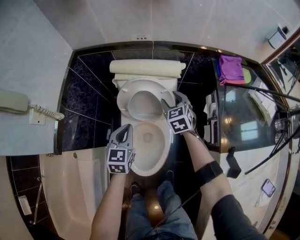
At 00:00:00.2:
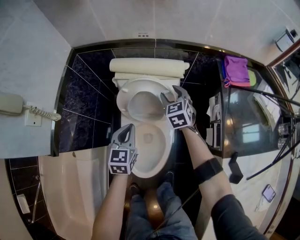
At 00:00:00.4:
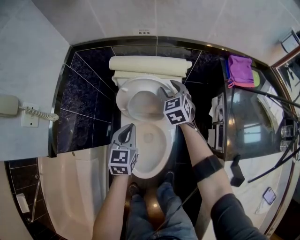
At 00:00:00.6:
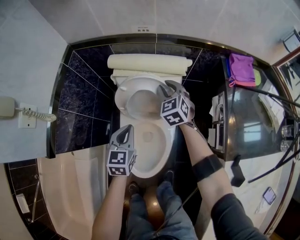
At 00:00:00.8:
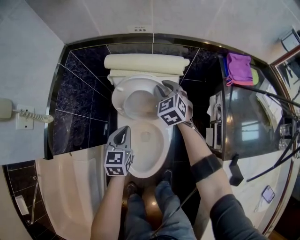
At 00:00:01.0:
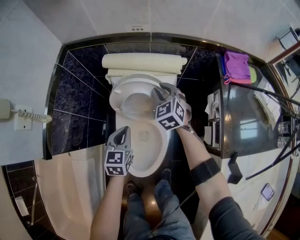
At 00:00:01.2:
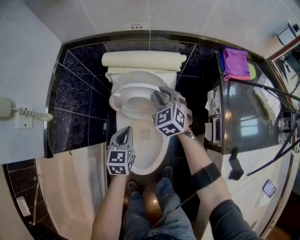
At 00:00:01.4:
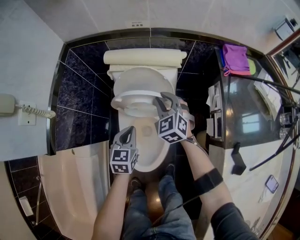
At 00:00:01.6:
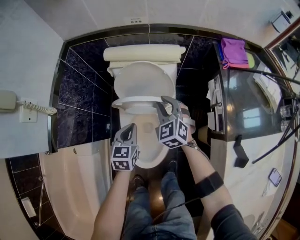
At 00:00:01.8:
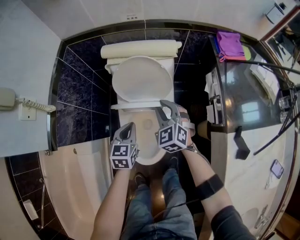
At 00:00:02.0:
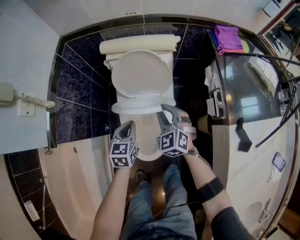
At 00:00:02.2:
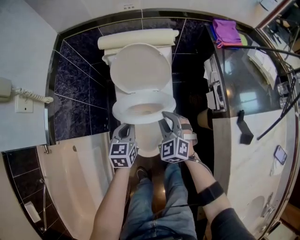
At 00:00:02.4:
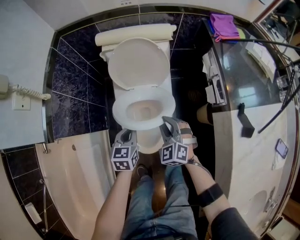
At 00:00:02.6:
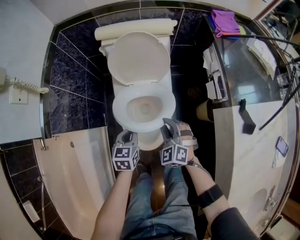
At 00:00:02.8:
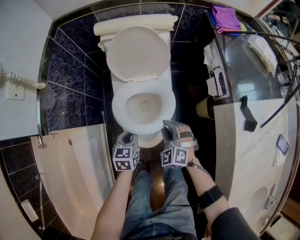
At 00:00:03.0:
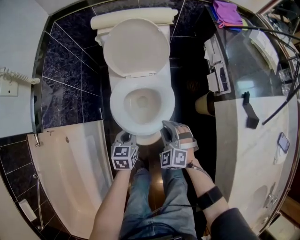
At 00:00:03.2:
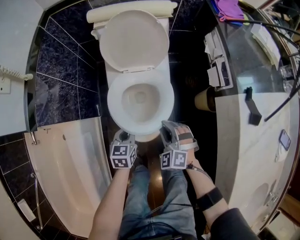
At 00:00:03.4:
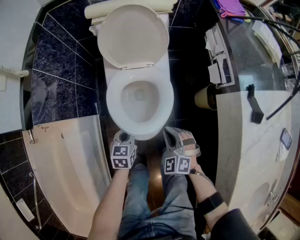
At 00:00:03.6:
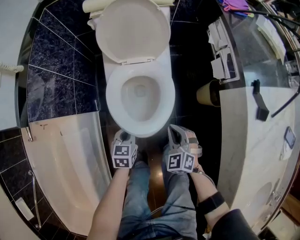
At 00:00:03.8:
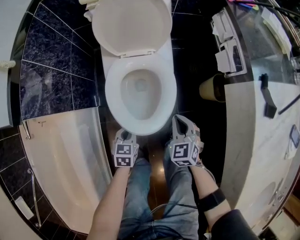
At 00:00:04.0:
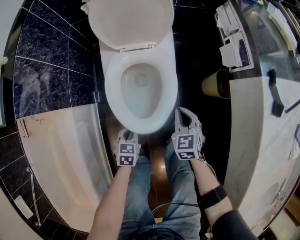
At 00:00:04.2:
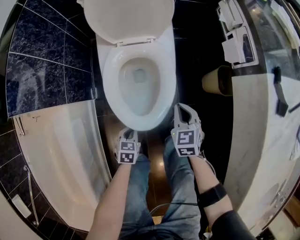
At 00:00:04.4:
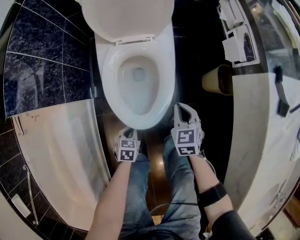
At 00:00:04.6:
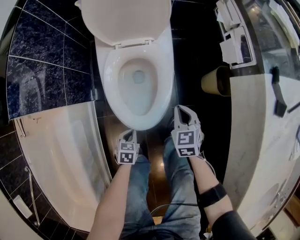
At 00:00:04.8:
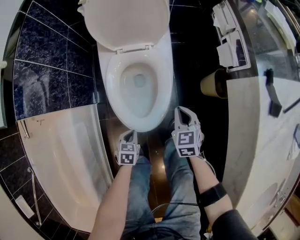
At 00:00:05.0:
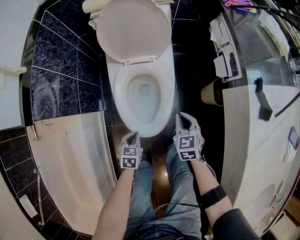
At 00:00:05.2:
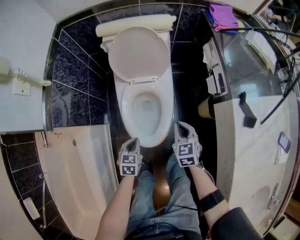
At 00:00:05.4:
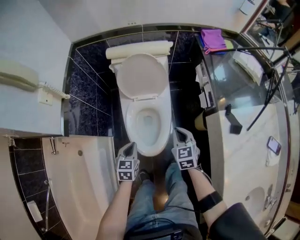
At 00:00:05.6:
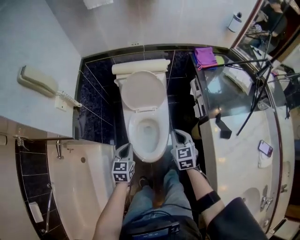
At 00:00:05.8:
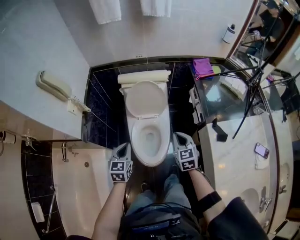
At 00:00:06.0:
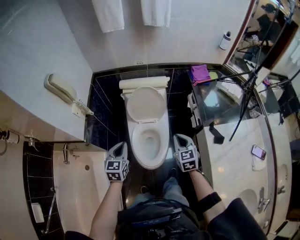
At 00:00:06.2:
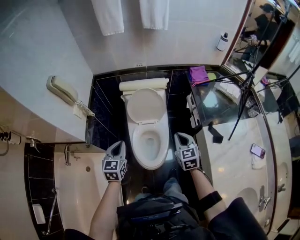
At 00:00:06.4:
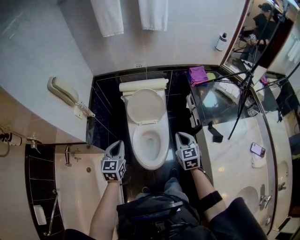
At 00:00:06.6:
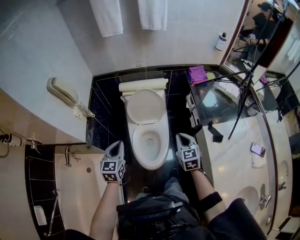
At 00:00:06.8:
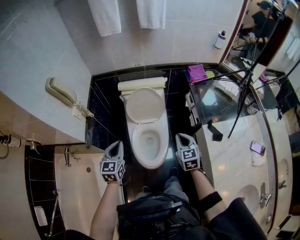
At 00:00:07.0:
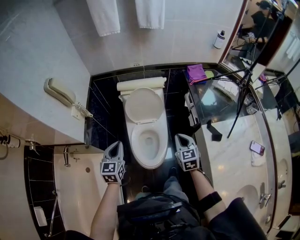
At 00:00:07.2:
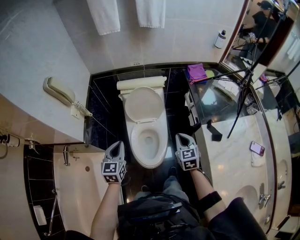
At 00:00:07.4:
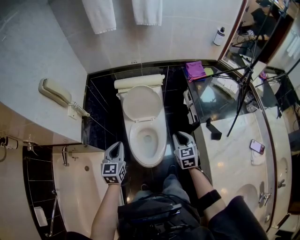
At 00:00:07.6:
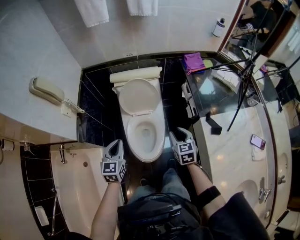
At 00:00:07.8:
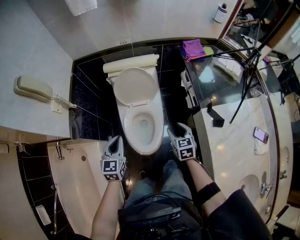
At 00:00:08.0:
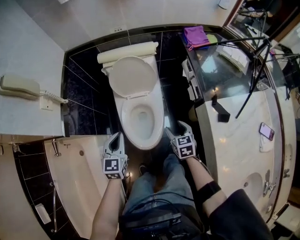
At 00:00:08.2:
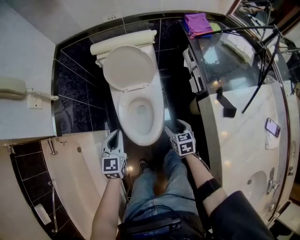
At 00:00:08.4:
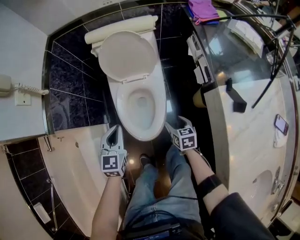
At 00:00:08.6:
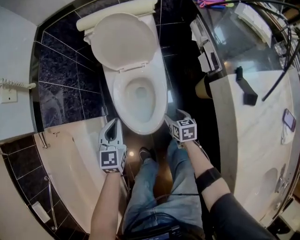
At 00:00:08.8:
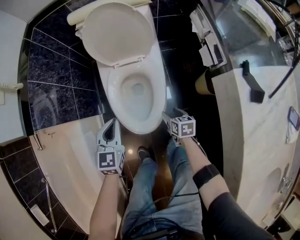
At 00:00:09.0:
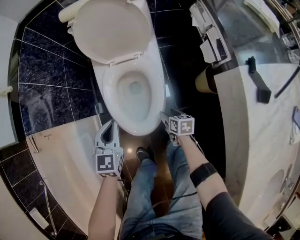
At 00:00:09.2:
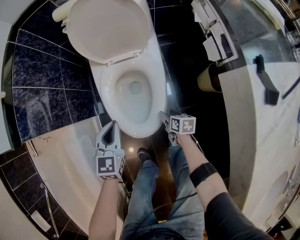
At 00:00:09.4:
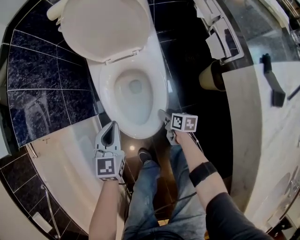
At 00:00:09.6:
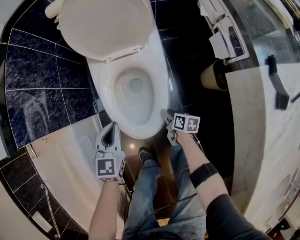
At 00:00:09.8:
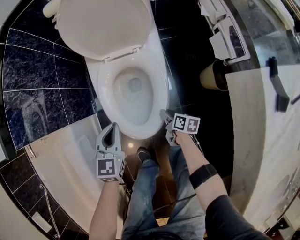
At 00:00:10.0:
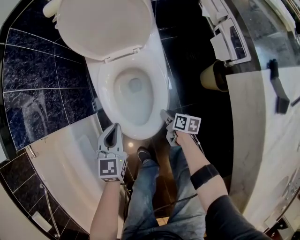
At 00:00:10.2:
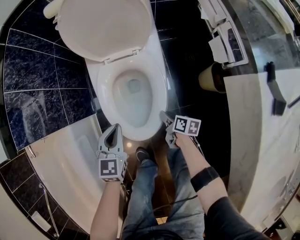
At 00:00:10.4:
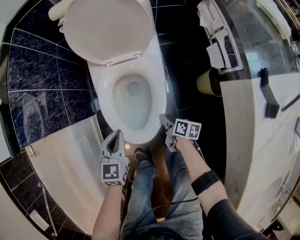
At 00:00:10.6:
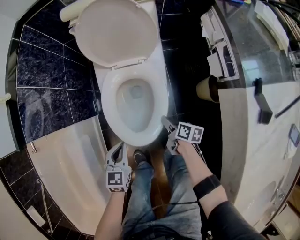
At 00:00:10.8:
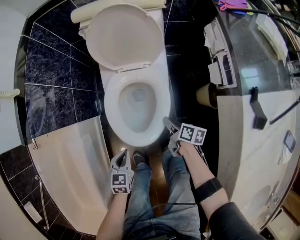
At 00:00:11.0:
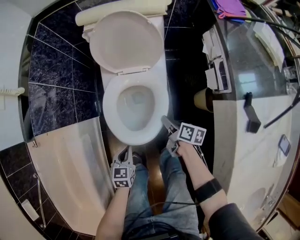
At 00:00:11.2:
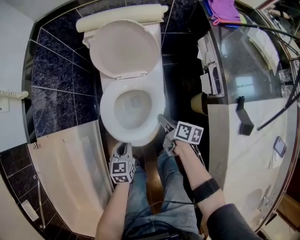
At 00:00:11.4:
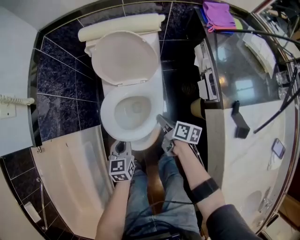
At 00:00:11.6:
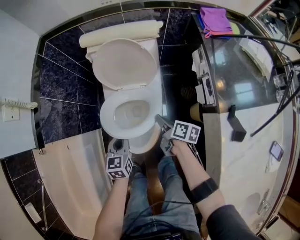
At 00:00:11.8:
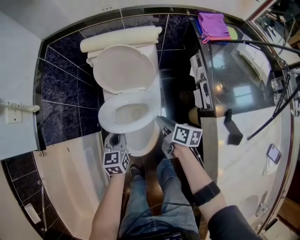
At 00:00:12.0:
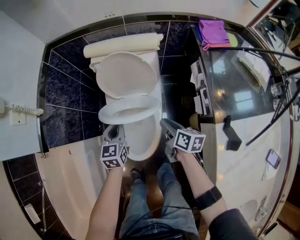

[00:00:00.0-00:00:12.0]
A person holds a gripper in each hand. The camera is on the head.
00:00:00.0 to 00:00:01.6: The left gripper heads downward, covering roughly 10 cm. The right gripper shifts approximately 10 cm backward, and closes its fingers.
00:00:01.6 to 00:00:03.0: Both grippers travel together backward and downward, about 25 cm. The right gripper rotates approximately 20 degrees.
00:00:03.0 to 00:00:04.4: The right gripper goes about 15 cm downward and to the right, twists approximately 40 degrees clockwise, seen from behind, and closes; the left gripper shifts roughly 25 cm downward and backward, and turns by approximately 20 degrees.
00:00:04.4 to 00:00:06.0: The grippers both shift upward by some 50 cm. The left gripper angles its fingers upward, by some 30 degrees.
00:00:06.0 to 00:00:07.6: The right gripper ends up some 5 cm from where it was, and opens up.
00:00:07.6 to 00:00:09.0: The right gripper is displaced downward by some 50 cm, turns by roughly 40 degrees, and opens up. The left gripper goes roughly 35 cm downward.
00:00:09.0 to 00:00:10.4: The right gripper rotates about 20 degrees, and closes up, while the left gripper shifts roughly 5 cm downward.
00:00:10.4 to 00:00:12.0: The right gripper moves upward and forward, about 35 cm. The left gripper shifts some 20 cm forward and upward.

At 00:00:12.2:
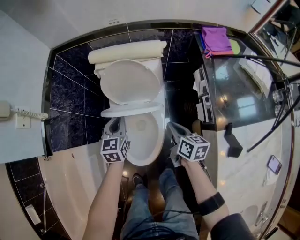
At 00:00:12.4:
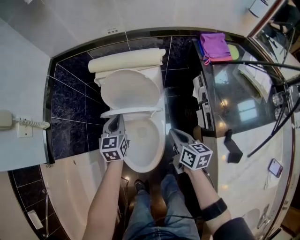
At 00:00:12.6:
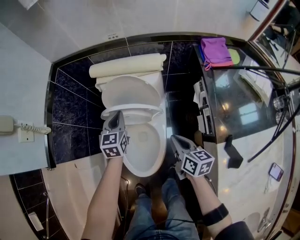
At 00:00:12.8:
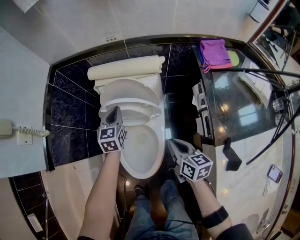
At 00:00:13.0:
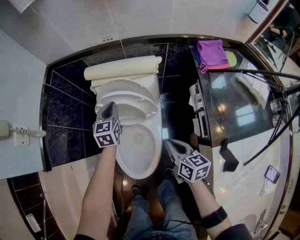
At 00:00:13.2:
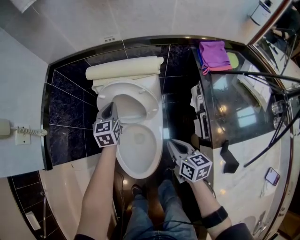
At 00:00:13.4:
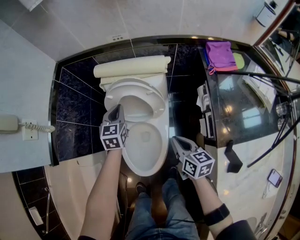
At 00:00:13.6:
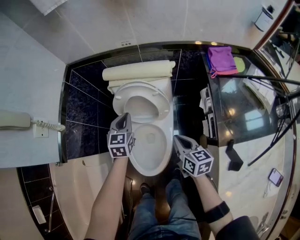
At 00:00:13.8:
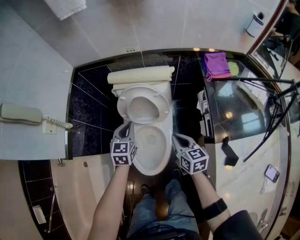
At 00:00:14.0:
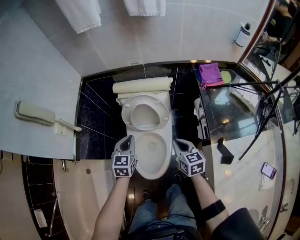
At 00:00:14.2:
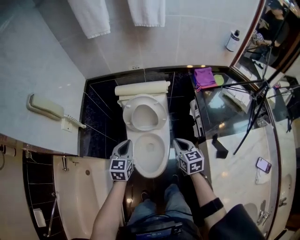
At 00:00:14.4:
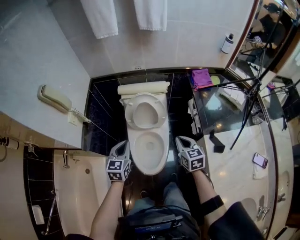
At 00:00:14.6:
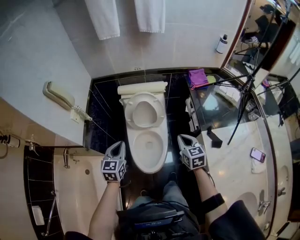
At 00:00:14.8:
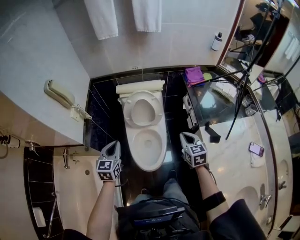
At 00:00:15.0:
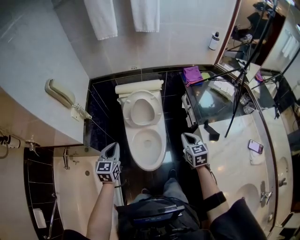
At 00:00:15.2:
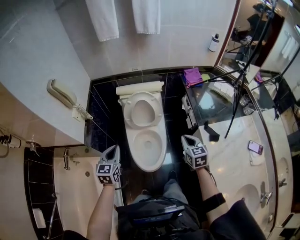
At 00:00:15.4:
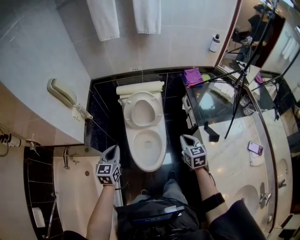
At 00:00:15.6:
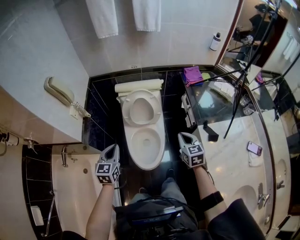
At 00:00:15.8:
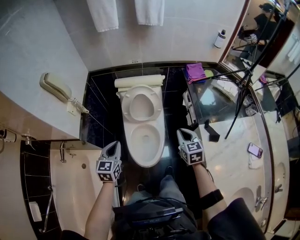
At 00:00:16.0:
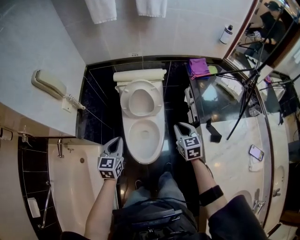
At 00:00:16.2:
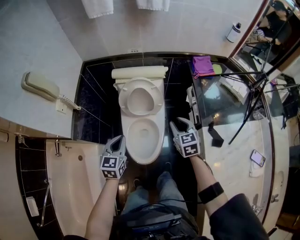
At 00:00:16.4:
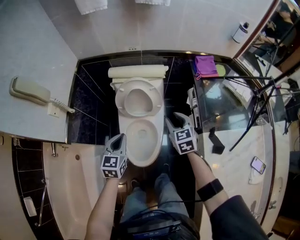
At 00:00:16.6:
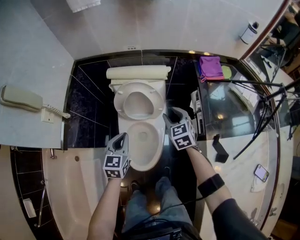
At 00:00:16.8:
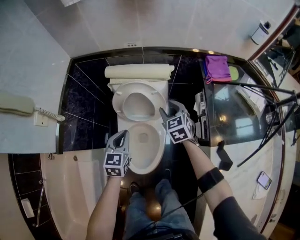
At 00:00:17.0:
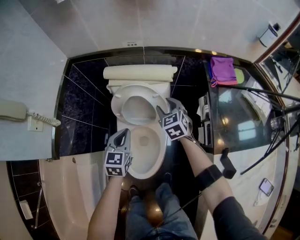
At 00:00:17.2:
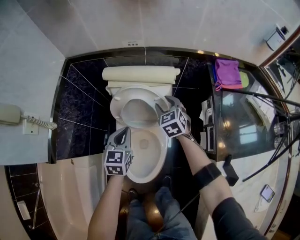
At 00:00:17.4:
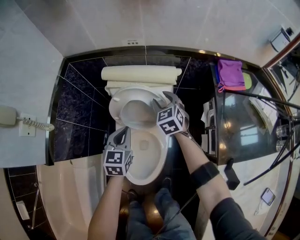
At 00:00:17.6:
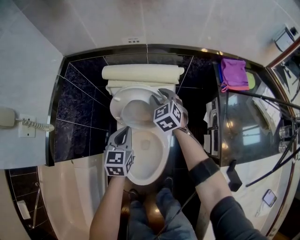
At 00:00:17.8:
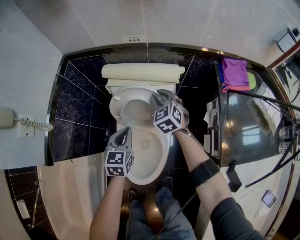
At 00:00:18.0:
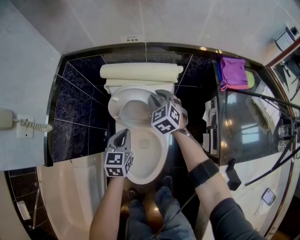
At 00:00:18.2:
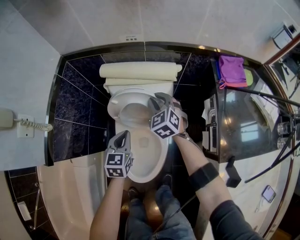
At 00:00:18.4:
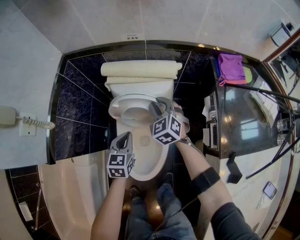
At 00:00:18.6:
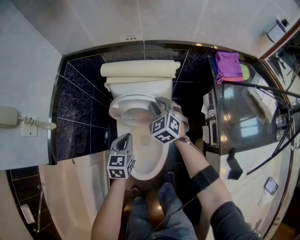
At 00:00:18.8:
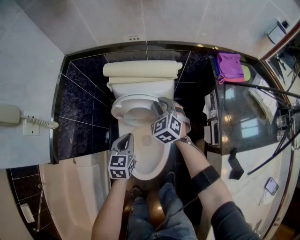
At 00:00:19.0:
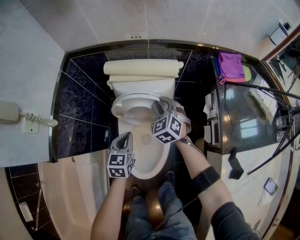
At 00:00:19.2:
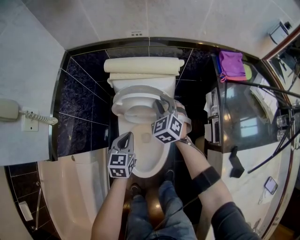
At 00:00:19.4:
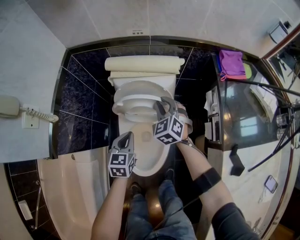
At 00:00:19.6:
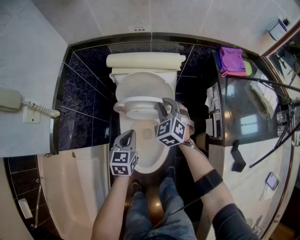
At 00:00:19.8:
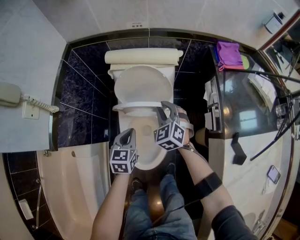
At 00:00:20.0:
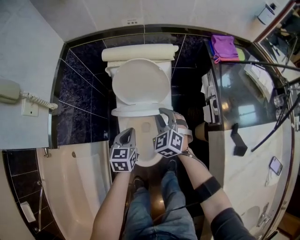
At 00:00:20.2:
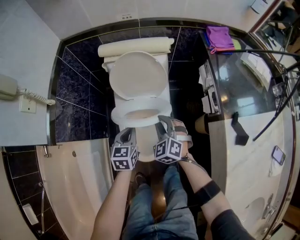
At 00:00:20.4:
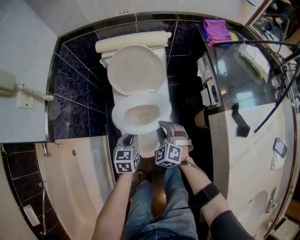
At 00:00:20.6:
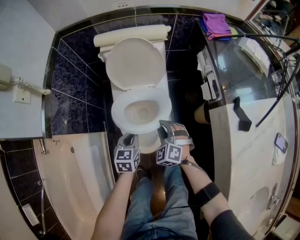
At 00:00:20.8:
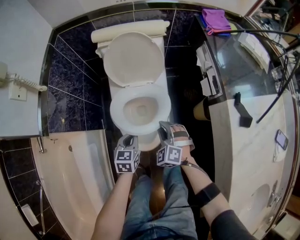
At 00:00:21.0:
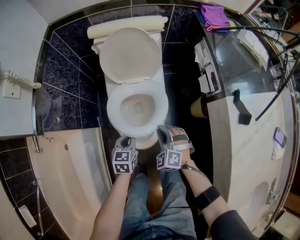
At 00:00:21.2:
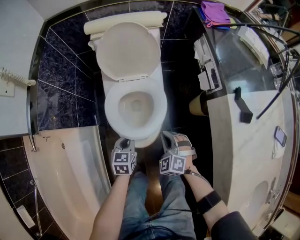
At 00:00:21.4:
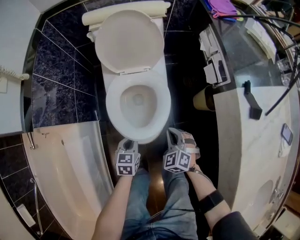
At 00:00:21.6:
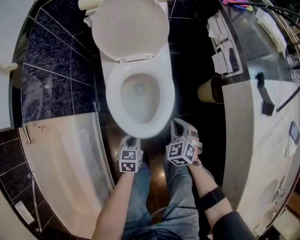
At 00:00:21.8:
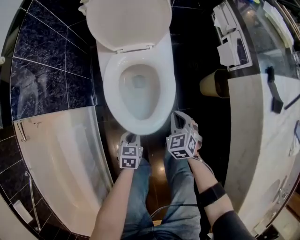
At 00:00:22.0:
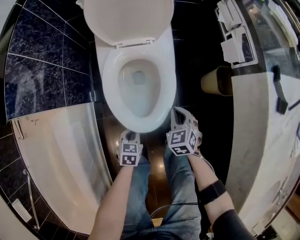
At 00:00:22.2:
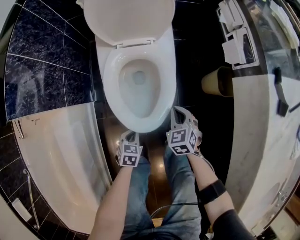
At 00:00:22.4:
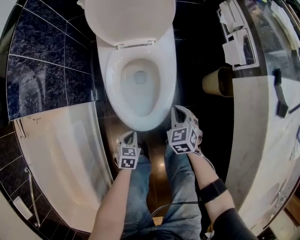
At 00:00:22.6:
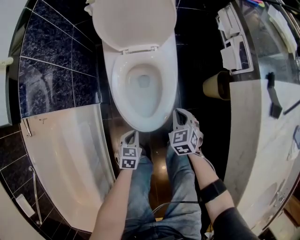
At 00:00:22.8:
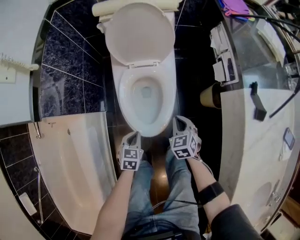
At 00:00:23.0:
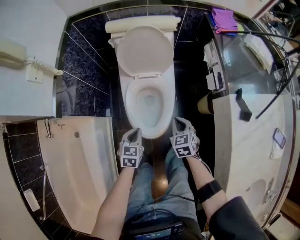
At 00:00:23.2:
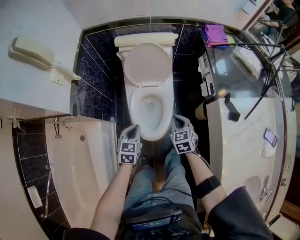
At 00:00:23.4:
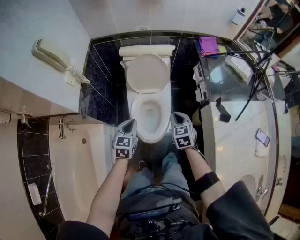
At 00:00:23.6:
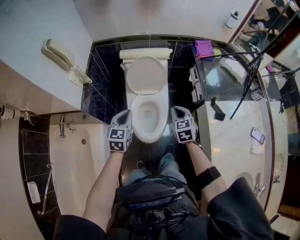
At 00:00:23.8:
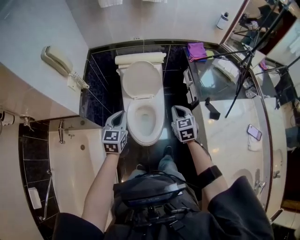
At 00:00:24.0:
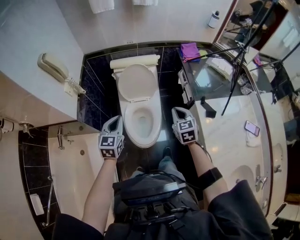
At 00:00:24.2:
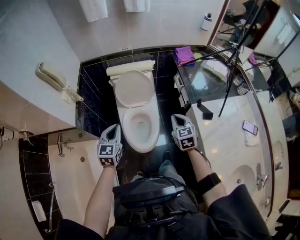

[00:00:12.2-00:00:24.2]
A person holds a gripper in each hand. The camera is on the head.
00:00:12.2 to 00:00:13.8: Both grippers travel together upward, about 10 cm. The left gripper moves roughly 15 cm forward and comes back, while the right gripper rotates some 20 degrees.
00:00:13.8 to 00:00:15.2: The right gripper shifts roughly 20 cm backward and upward, and changes its angle by about 20 degrees. Meanwhile the left gripper is displaced backward, upward and to the left by about 30 cm.
00:00:15.2 to 00:00:16.6: The left gripper travels forward, downward and to the right by about 25 cm. The right gripper travels forward and downward by about 25 cm, turns by approximately 20 degrees, and opens.
00:00:16.6 to 00:00:18.2: The right gripper travels forward, downward and to the left by some 20 cm; the left gripper shifts roughly 15 cm downward and forward.
00:00:18.2 to 00:00:19.8: The right gripper goes roughly 15 cm backward, while the left gripper goes roughly 10 cm backward.
00:00:19.8 to 00:00:21.2: The two grippers go some 30 cm backward and downward.
00:00:21.2 to 00:00:22.6: The left gripper is displaced downward and backward by about 15 cm; the right gripper shifts roughly 10 cm downward, and rotates some 30 degrees.
00:00:22.6 to 00:00:24.2: Both grippers move upward, roughly 50 cm. The right gripper turns by some 20 degrees. Meanwhile the left gripper angles its fingers upward, by roughly 30 degrees.
